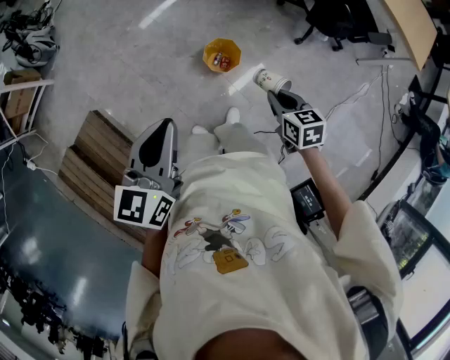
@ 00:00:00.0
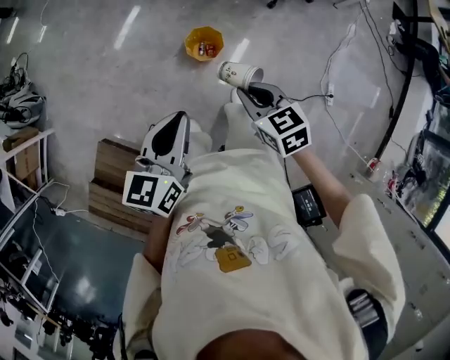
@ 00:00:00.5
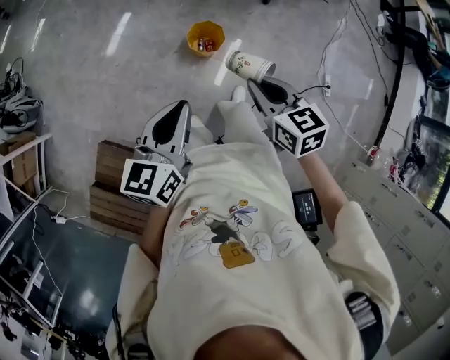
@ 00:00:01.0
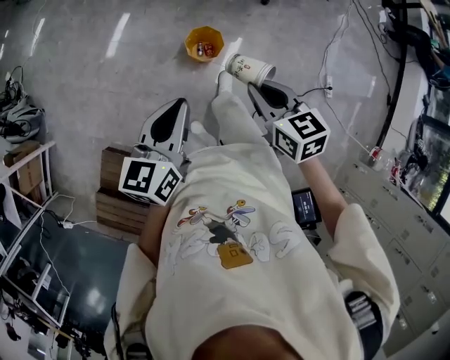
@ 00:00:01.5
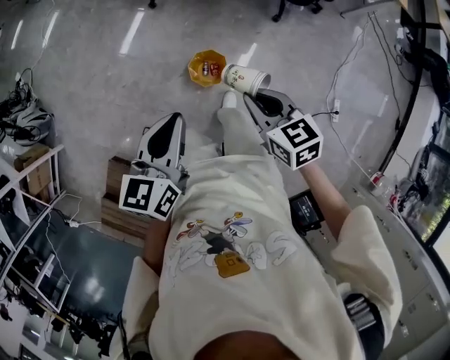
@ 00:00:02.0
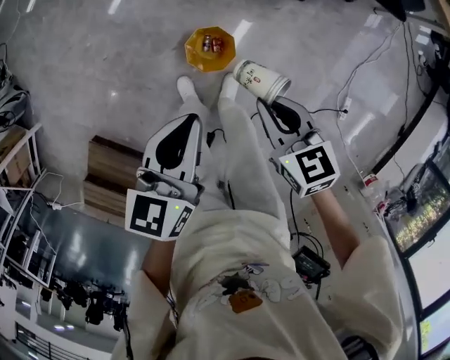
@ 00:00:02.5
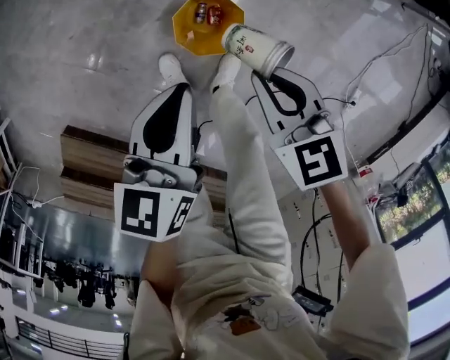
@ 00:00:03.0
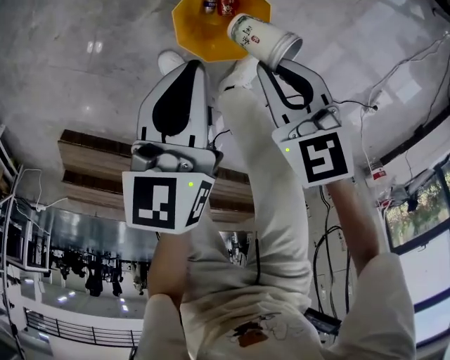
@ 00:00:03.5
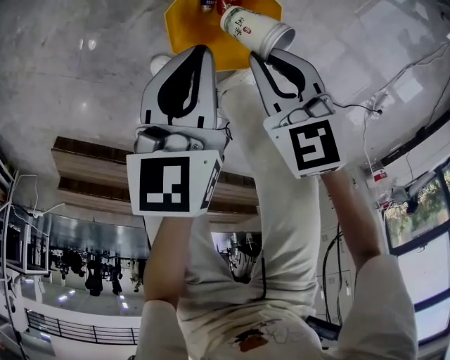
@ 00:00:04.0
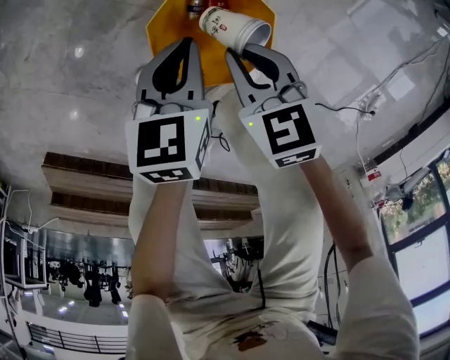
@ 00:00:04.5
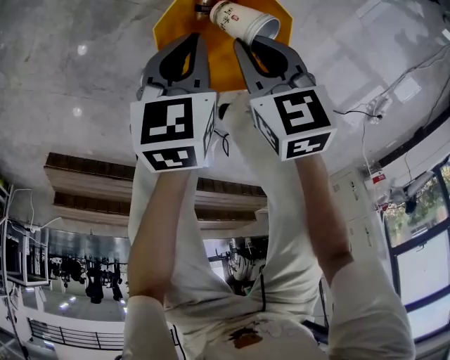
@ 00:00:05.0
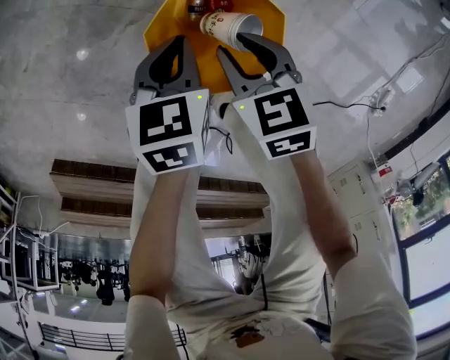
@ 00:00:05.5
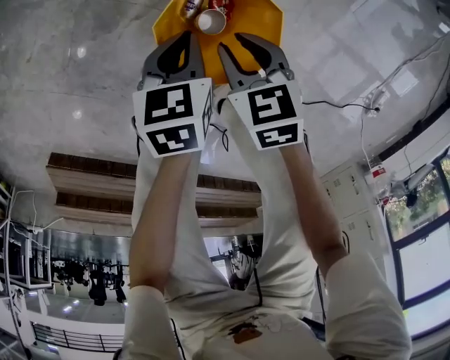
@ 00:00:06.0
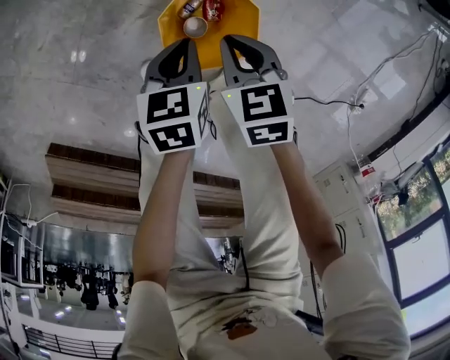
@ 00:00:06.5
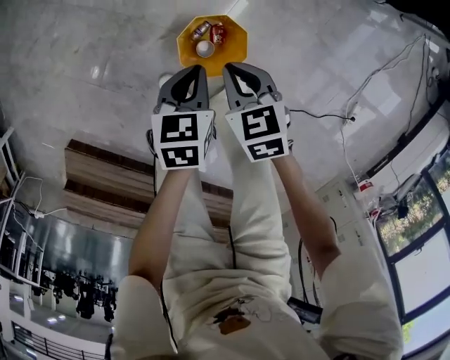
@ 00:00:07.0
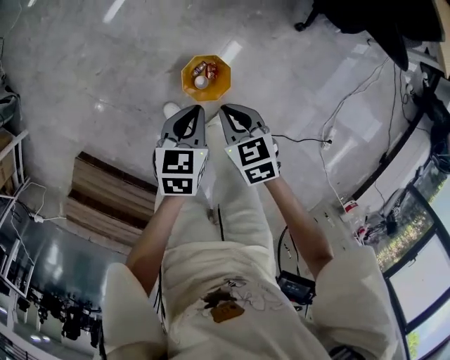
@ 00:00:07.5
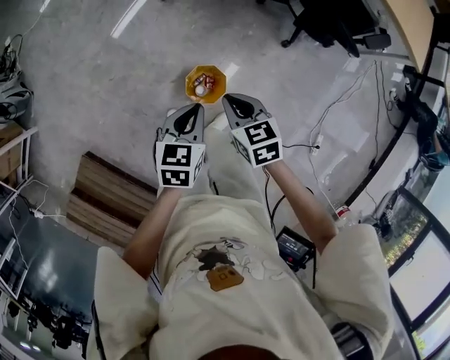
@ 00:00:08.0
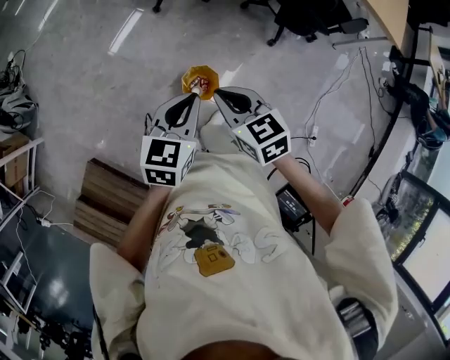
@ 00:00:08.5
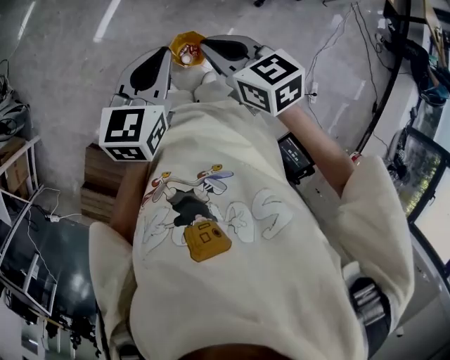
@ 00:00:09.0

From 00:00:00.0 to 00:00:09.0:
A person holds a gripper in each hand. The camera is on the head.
From 00:00:00.0 to 00:00:02.0: The left gripper goes about 15 cm forward. The right gripper shifts approximately 10 cm forward and upward.
From 00:00:02.0 to 00:00:04.5: The grippers both shift downward by some 80 cm. The left gripper swivels approximately 30 degrees.
From 00:00:04.5 to 00:00:07.0: Both grippers move upward, some 25 cm. The right gripper opens and closes again.
From 00:00:07.0 to 00:00:09.0: The grippers both shift upward by roughly 60 cm. The right gripper turns by some 20 degrees. The left gripper turns by some 30 degrees.

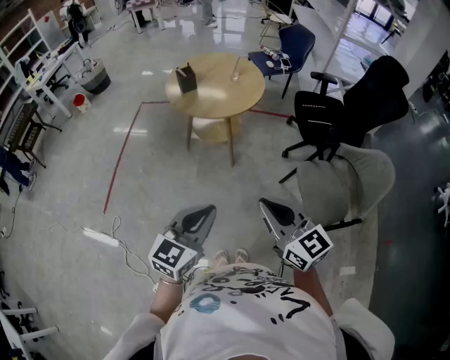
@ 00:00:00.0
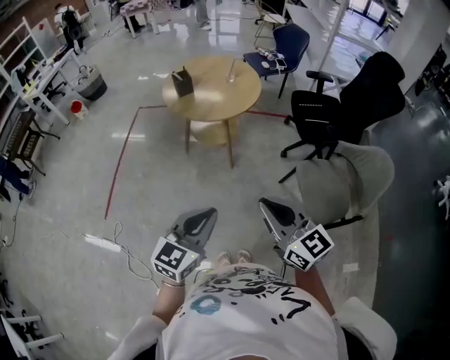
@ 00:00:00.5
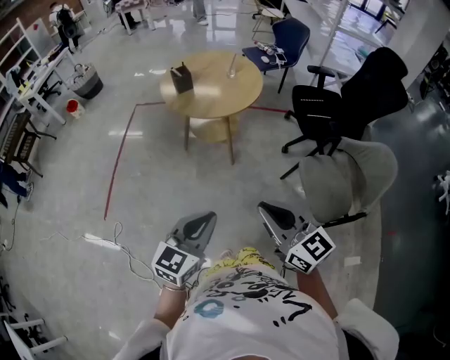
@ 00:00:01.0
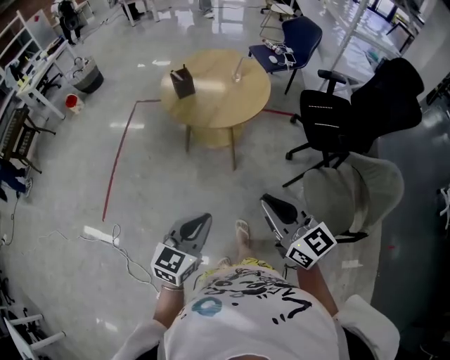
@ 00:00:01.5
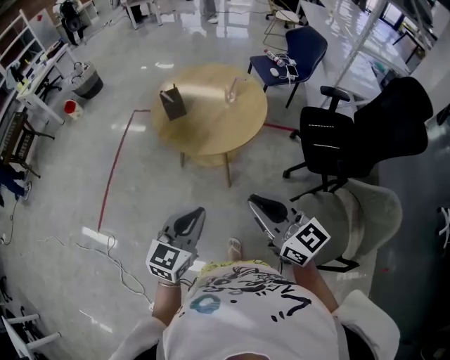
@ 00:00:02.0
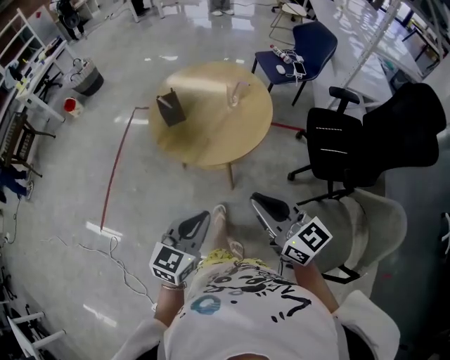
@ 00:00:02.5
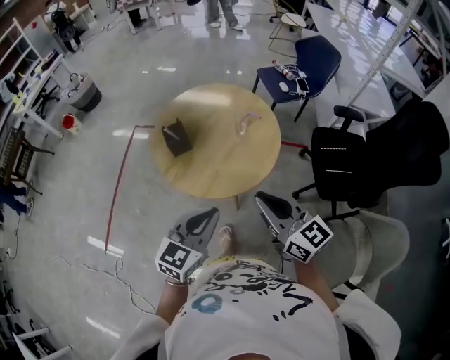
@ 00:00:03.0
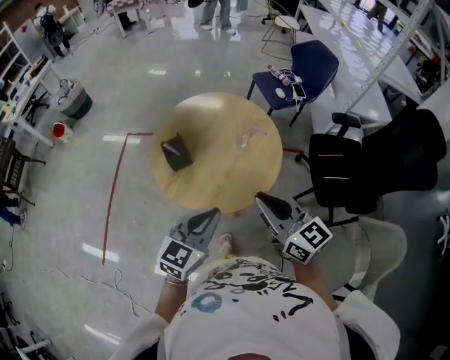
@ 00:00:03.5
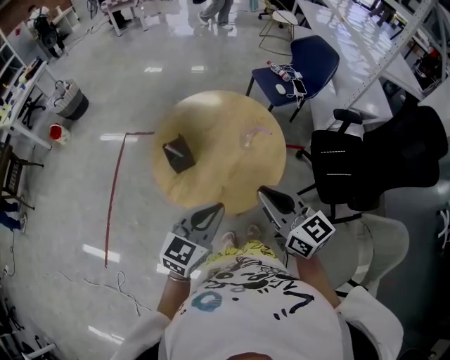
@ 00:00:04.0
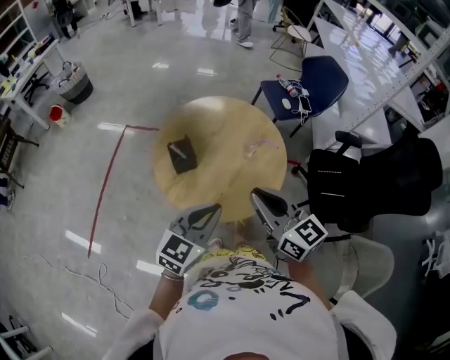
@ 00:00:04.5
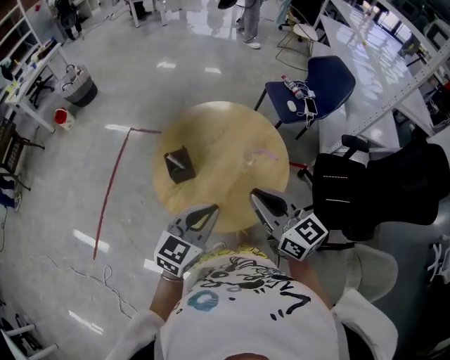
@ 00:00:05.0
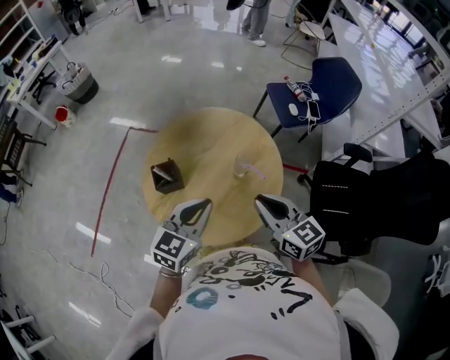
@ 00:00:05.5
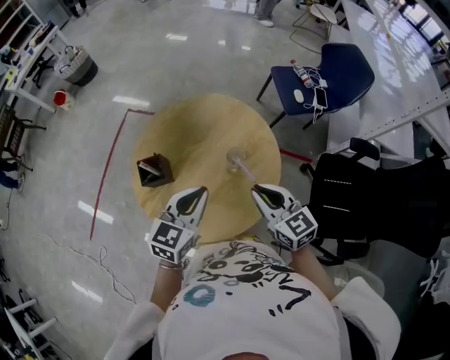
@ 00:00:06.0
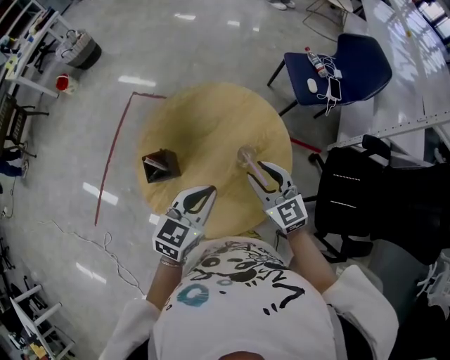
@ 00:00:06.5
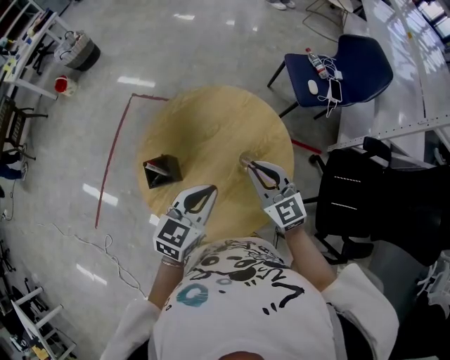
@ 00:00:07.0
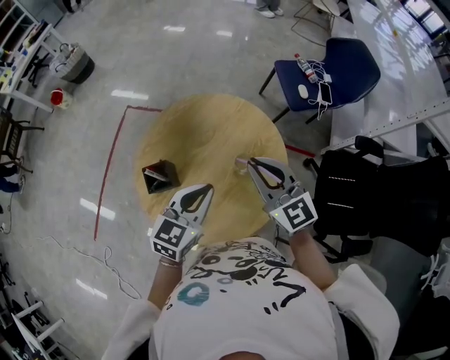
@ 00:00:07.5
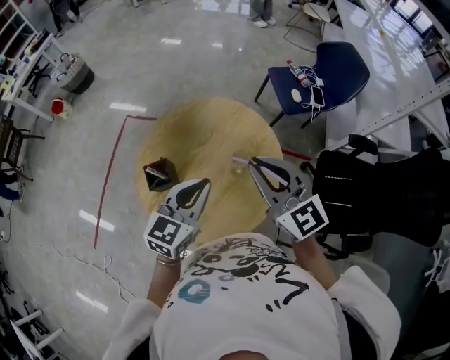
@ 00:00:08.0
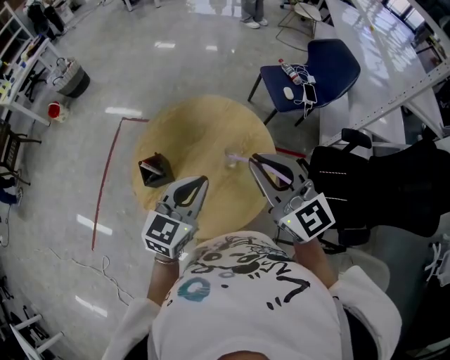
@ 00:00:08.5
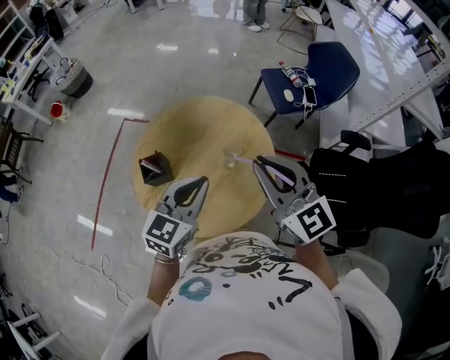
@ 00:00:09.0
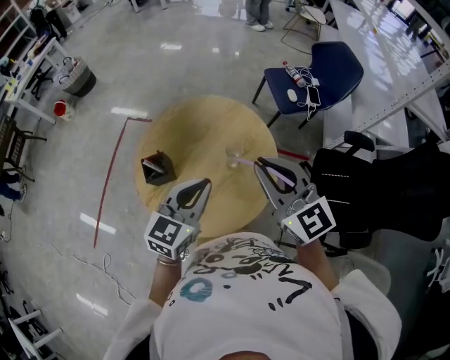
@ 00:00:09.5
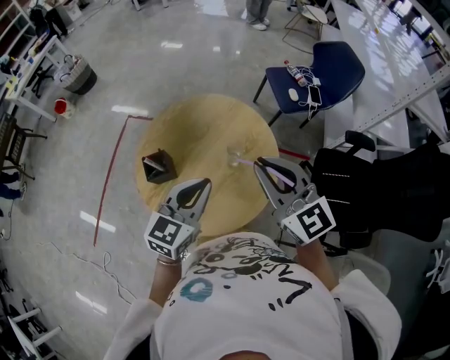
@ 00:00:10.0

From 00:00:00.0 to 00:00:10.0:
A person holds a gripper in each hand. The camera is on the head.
From 00:00:00.0 to 00:00:02.0: The grippers both shift forward by roughly 25 cm.
From 00:00:02.0 to 00:00:04.0: The grippers both shift forward by approximately 30 cm.
From 00:00:04.0 to 00:00:06.0: The right gripper travels forward, downward and to the right by about 25 cm, and swivels about 20 degrees. Meanwhile the left gripper is displaced forward by roughly 20 cm, and changes its angle by approximately 20 degrees.
From 00:00:06.0 to 00:00:08.0: The left gripper changes place by roughly 5 cm. Meanwhile the right gripper shifts roughly 15 cm upward, swivels approximately 20 degrees, and opens, then closes again.
From 00:00:08.0 to 00:00:10.0: The right gripper ends up some 5 cm from where it was.

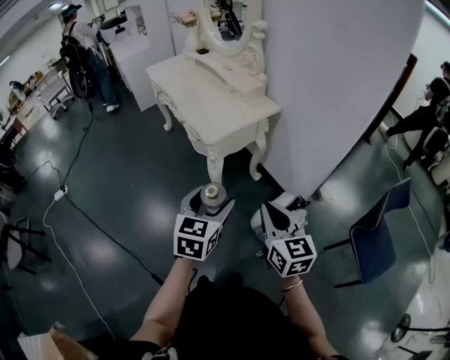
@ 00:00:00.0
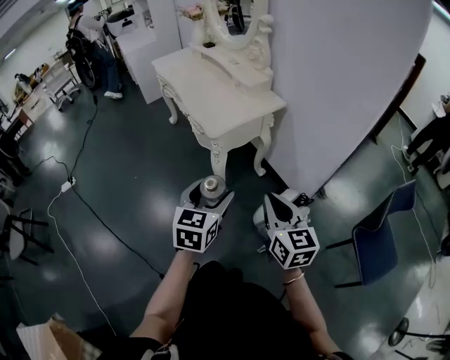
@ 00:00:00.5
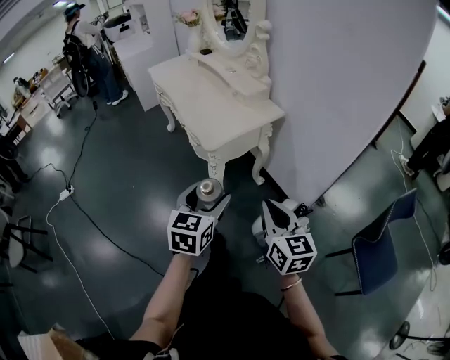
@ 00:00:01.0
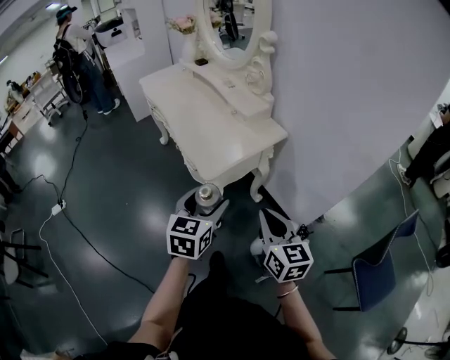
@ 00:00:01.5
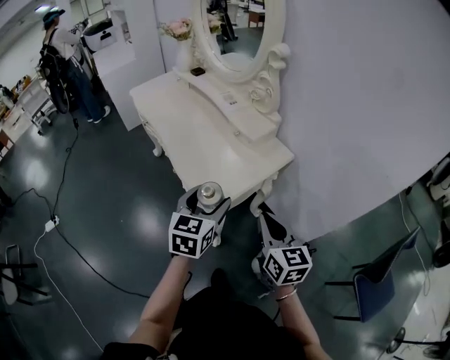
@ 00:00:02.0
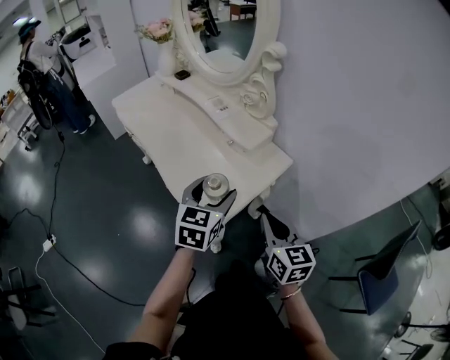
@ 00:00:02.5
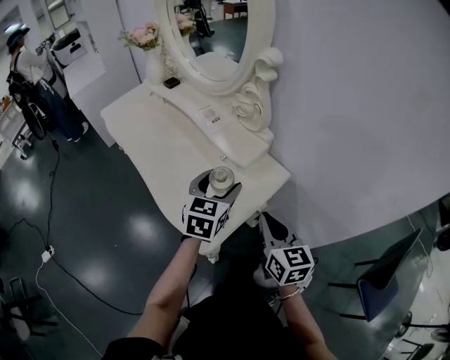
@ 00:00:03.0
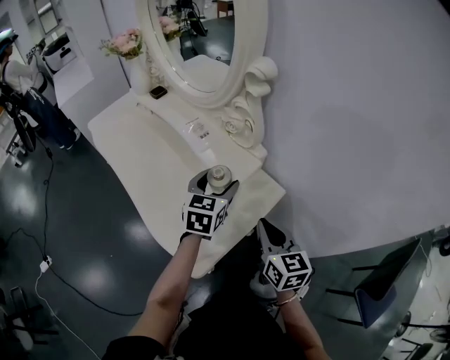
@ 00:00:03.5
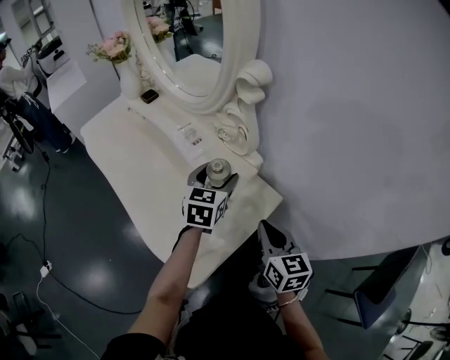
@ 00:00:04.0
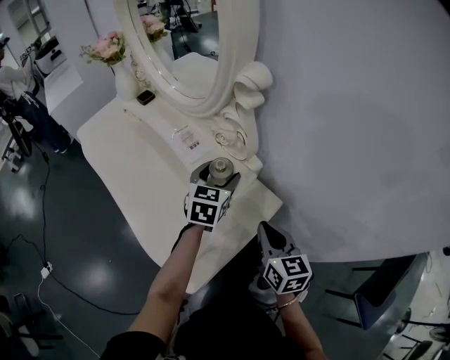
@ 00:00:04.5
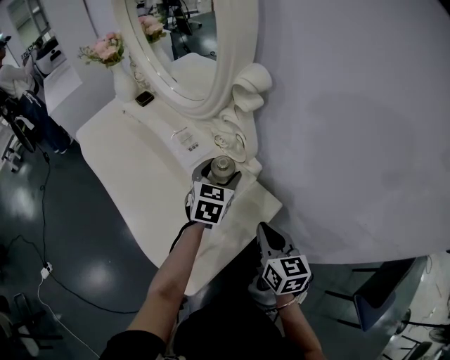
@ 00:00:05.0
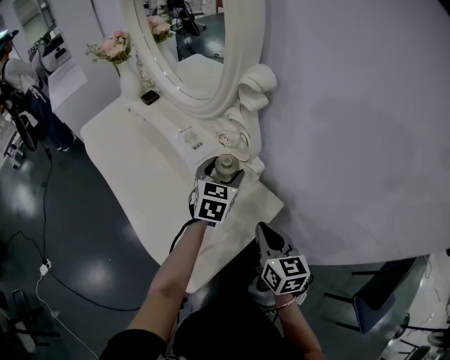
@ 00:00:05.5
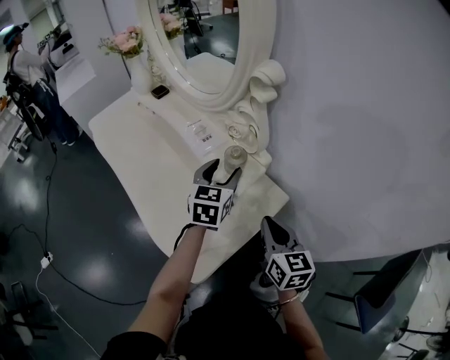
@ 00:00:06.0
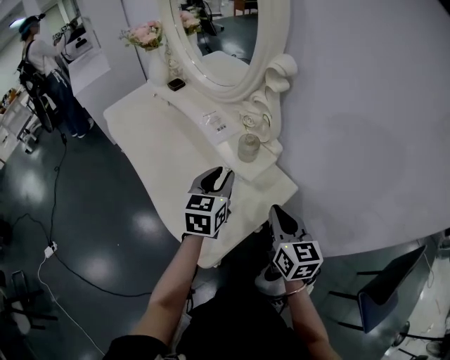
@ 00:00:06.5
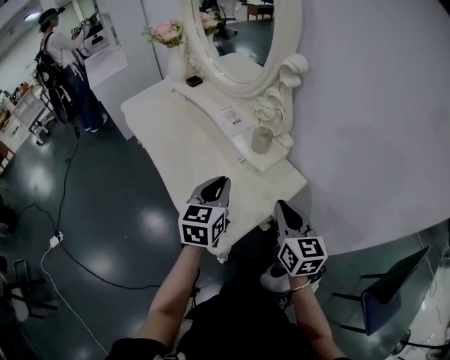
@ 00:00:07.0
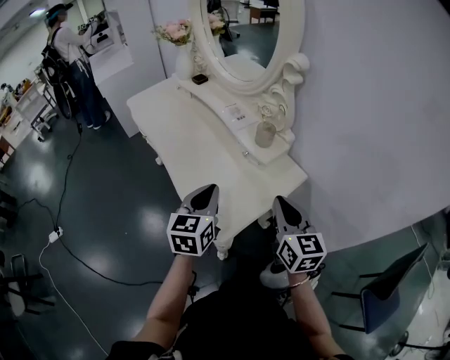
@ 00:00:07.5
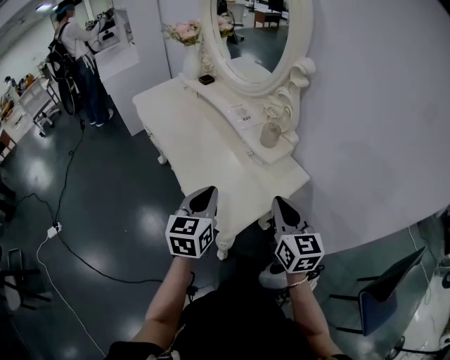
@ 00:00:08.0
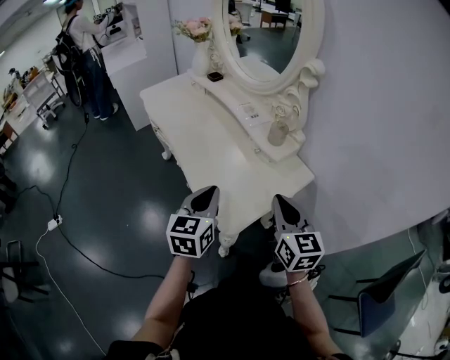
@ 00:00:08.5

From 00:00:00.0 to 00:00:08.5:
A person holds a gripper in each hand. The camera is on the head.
From 00:00:00.0 to 00:00:02.0: The grippers both shift forward by approximately 30 cm.
From 00:00:02.0 to 00:00:04.0: The grippers both shift forward by about 30 cm.
From 00:00:04.0 to 00:00:06.5: The left gripper moves backward and to the left, approximately 10 cm, and closes up.
From 00:00:06.5 to 00:00:08.5: The left gripper moves backward and to the left, some 20 cm; the right gripper travels backward and to the left by about 10 cm.
